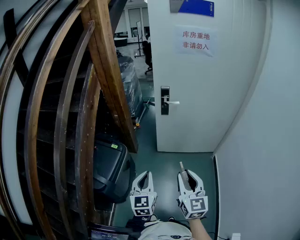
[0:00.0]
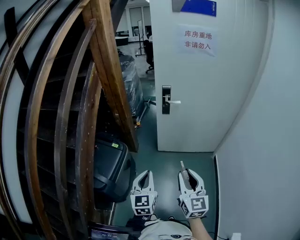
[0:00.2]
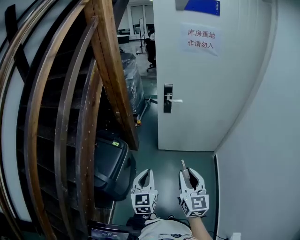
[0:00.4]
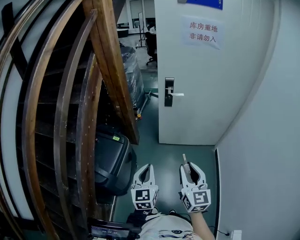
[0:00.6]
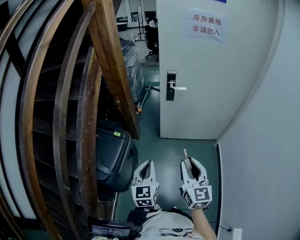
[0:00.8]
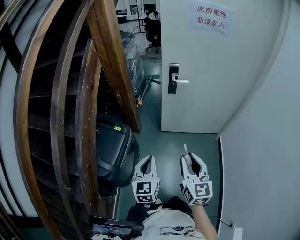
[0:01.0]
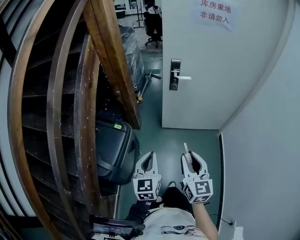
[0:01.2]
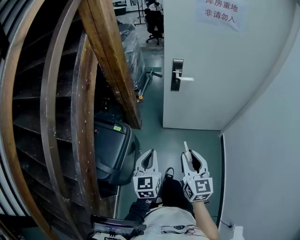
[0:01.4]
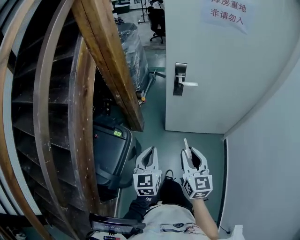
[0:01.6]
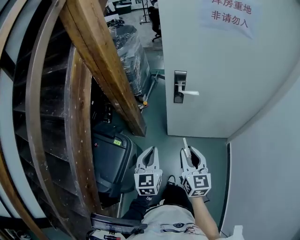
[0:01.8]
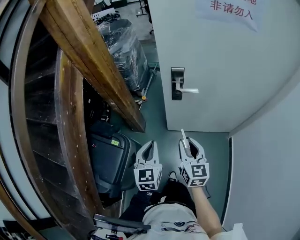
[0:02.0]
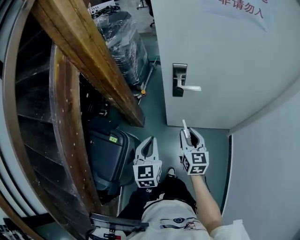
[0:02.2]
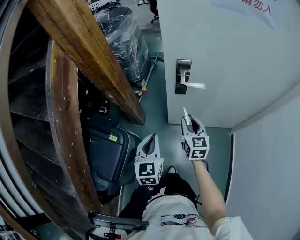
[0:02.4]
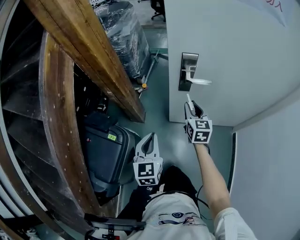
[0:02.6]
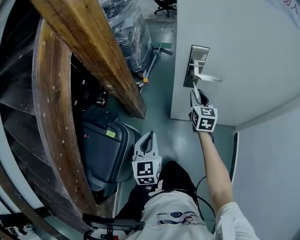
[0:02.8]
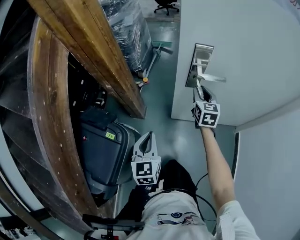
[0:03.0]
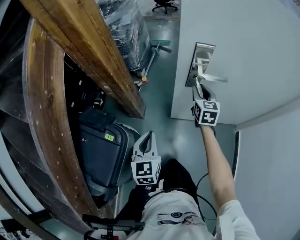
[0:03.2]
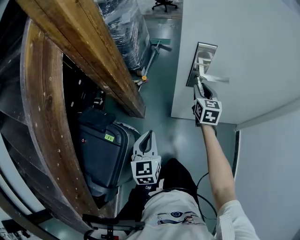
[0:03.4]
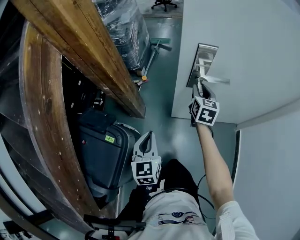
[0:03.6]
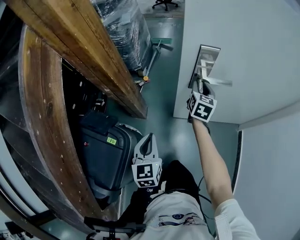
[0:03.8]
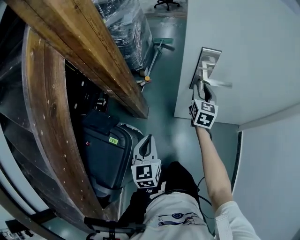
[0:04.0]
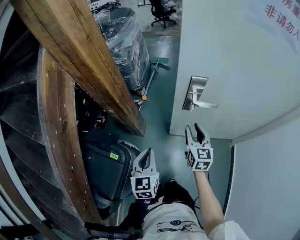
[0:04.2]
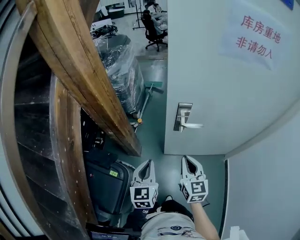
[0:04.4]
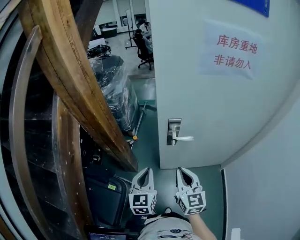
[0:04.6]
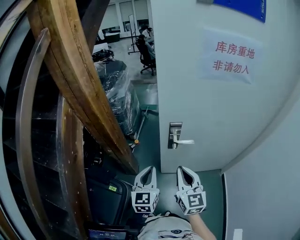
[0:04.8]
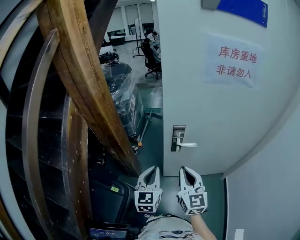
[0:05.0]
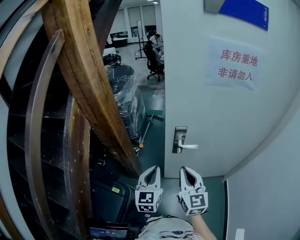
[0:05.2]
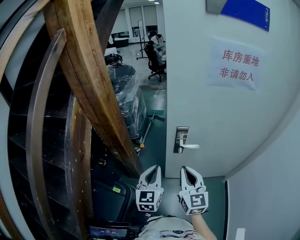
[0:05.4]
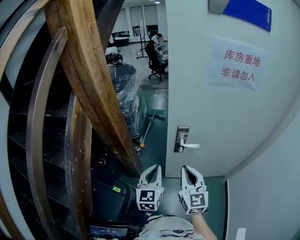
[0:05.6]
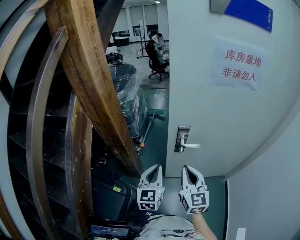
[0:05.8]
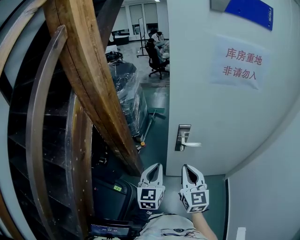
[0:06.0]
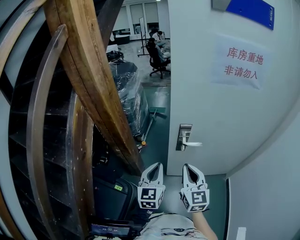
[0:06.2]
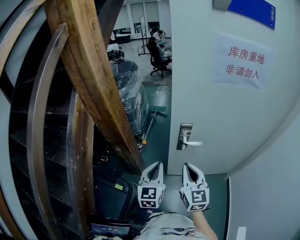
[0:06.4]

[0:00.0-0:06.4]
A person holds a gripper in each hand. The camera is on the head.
0:00.0 to 0:01.6: Both grippers move forward, approximately 20 cm.
0:01.6 to 0:03.2: The left gripper is displaced forward and downward by about 25 cm, while the right gripper moves forward and downward, about 50 cm.
0:03.2 to 0:04.8: The right gripper heads upward and backward, covering approximately 30 cm, and closes. The left gripper travels upward by about 20 cm.
0:04.8 to 0:06.4: The grippers make only small movements.

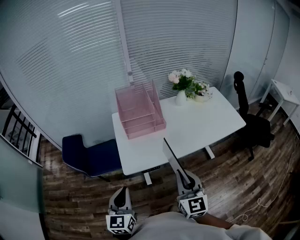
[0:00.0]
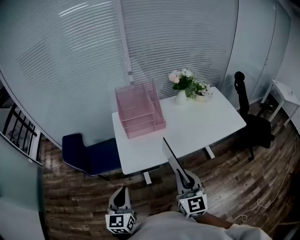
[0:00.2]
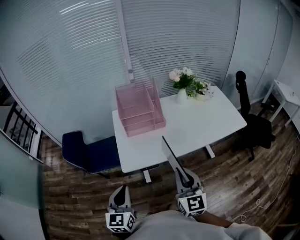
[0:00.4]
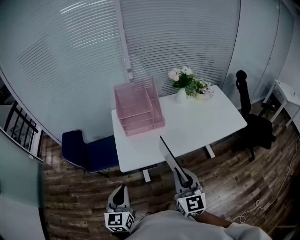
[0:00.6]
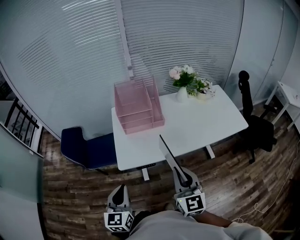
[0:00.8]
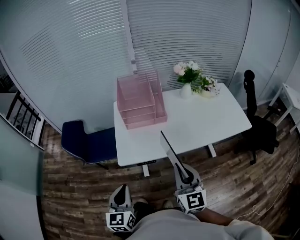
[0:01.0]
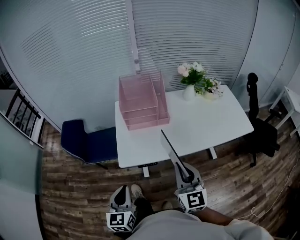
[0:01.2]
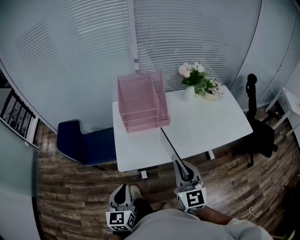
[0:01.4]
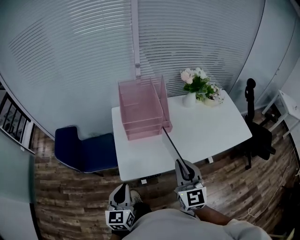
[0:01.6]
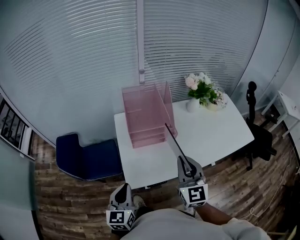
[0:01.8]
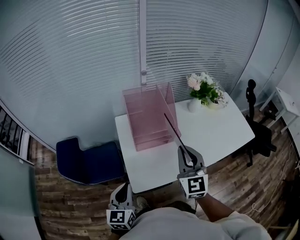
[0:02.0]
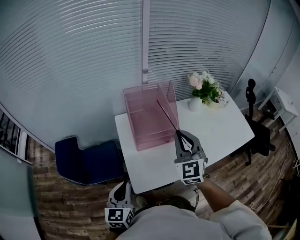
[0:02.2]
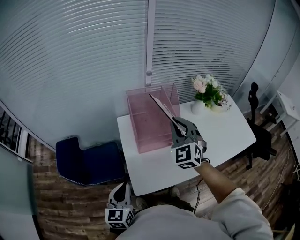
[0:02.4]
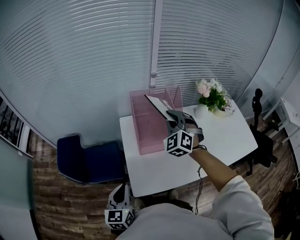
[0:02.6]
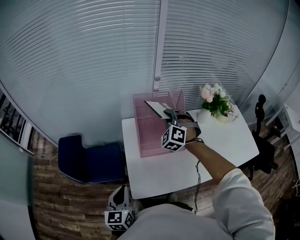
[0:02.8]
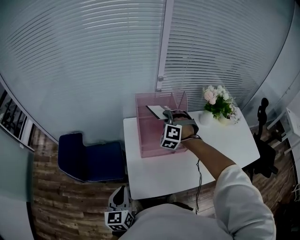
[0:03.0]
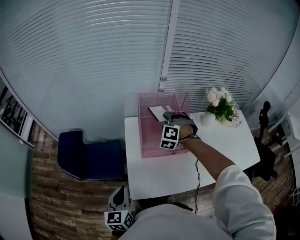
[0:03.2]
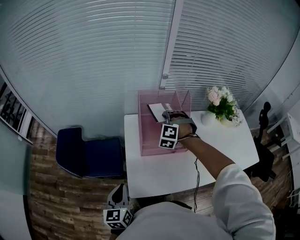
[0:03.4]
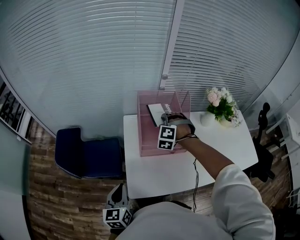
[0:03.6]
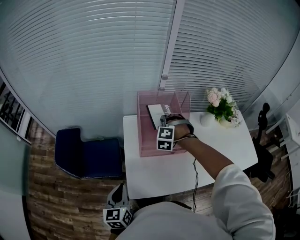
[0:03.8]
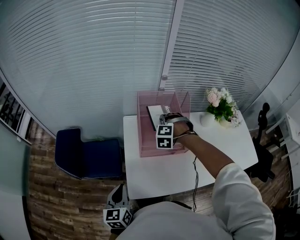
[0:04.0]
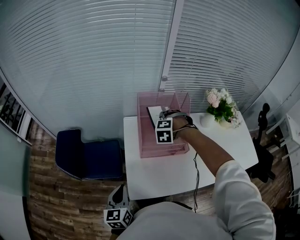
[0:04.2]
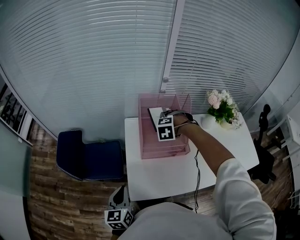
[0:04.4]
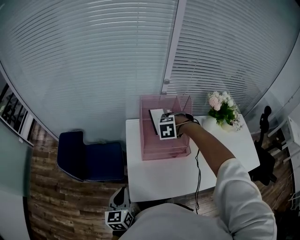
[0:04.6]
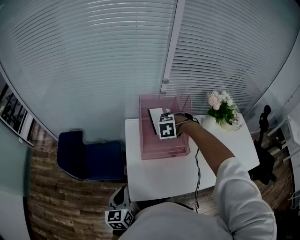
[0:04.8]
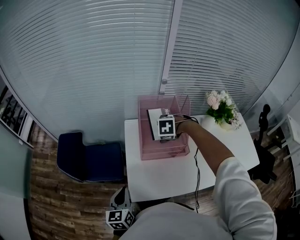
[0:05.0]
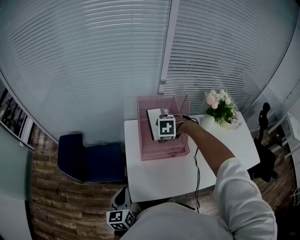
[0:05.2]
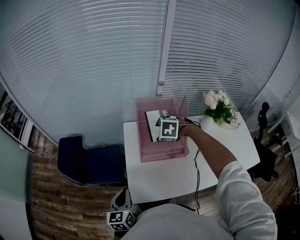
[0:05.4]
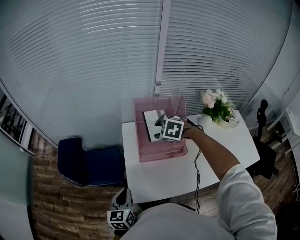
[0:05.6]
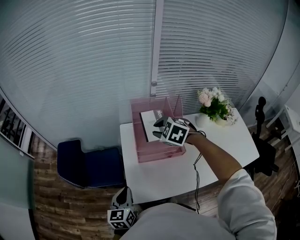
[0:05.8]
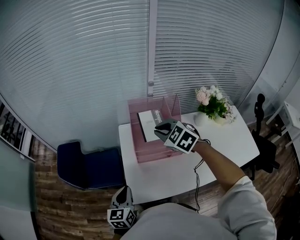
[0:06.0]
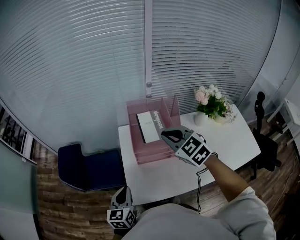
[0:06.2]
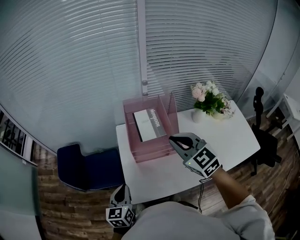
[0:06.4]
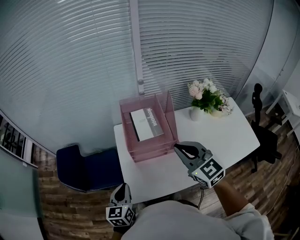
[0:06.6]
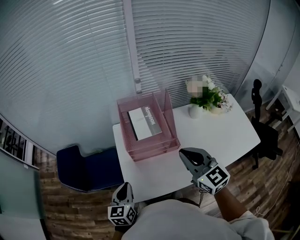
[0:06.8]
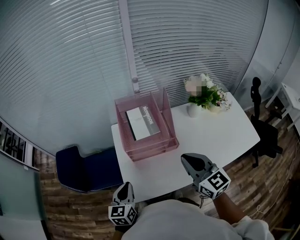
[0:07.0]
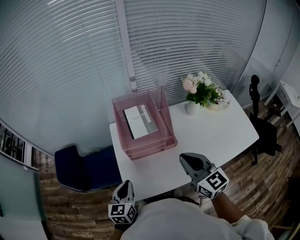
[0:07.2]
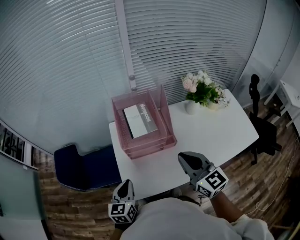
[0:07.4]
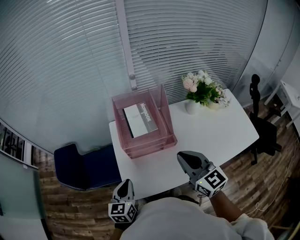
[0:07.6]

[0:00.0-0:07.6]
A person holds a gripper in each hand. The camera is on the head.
0:00.0 to 0:01.6: The right gripper shifts about 15 cm forward; the left gripper heads forward and downward, covering about 15 cm.
0:01.6 to 0:03.0: The left gripper travels forward and to the left by approximately 15 cm, while the right gripper goes roughly 40 cm forward, and rotates around the line of its fingers by about 70 degrees, counterclockwise from behind.
0:03.0 to 0:04.6: The right gripper shifts some 10 cm downward, tilts its fingers about 50 degrees downward, and opens up.
0:04.6 to 0:06.0: The right gripper shifts some 15 cm upward, tilts its fingers some 40 degrees upward, and closes its fingers.
0:06.0 to 0:07.6: The left gripper moves to the right, roughly 5 cm, while the right gripper moves backward and to the right, some 20 cm, and angles its fingers upward, by about 40 degrees.

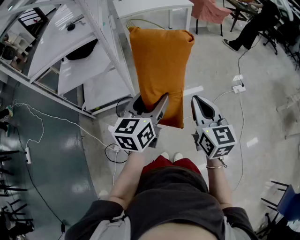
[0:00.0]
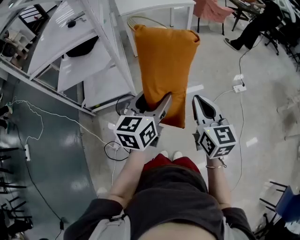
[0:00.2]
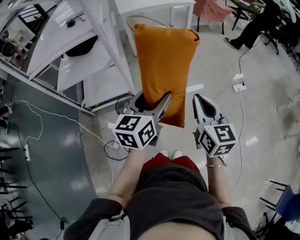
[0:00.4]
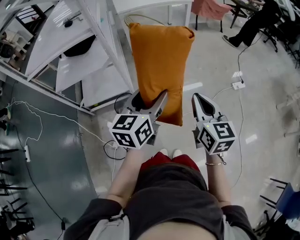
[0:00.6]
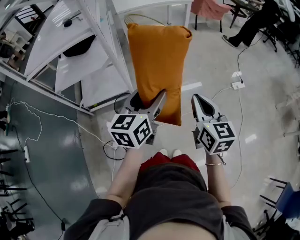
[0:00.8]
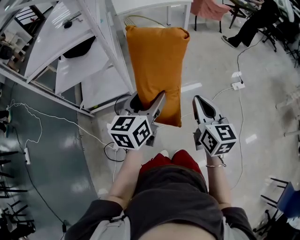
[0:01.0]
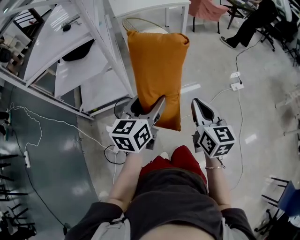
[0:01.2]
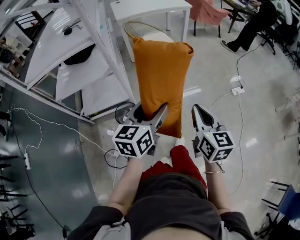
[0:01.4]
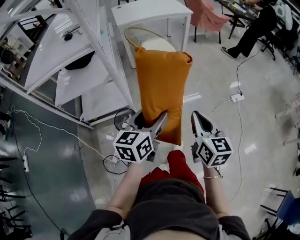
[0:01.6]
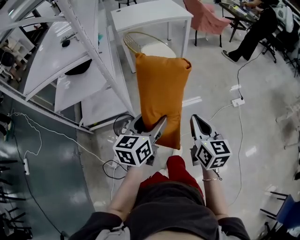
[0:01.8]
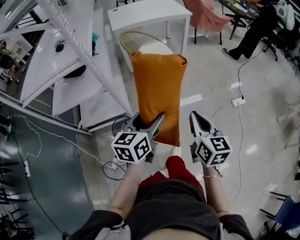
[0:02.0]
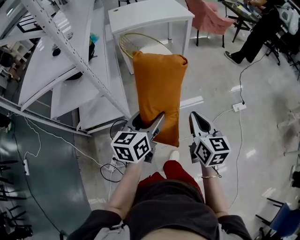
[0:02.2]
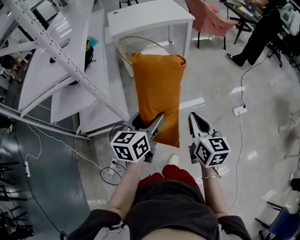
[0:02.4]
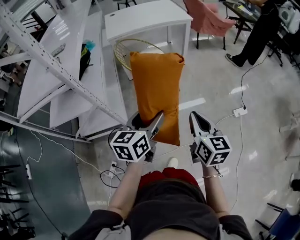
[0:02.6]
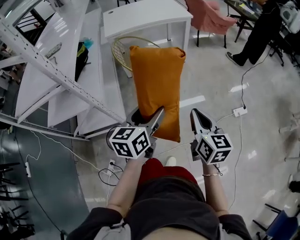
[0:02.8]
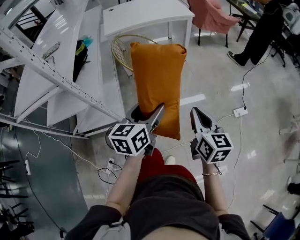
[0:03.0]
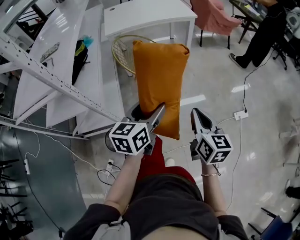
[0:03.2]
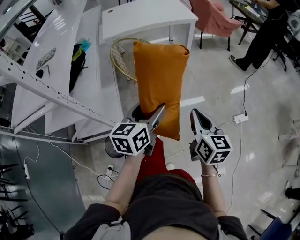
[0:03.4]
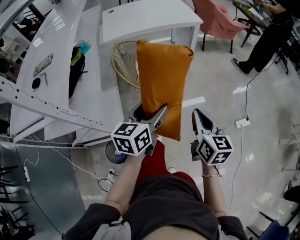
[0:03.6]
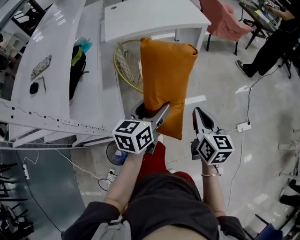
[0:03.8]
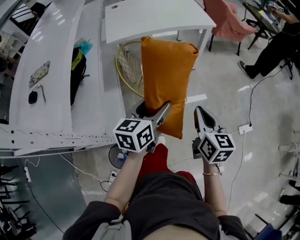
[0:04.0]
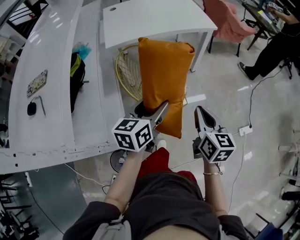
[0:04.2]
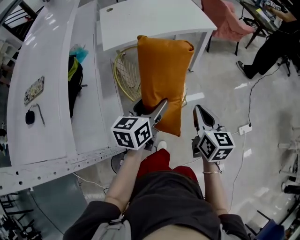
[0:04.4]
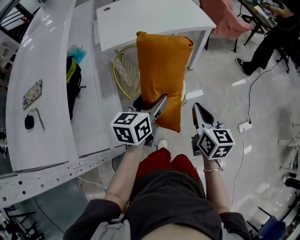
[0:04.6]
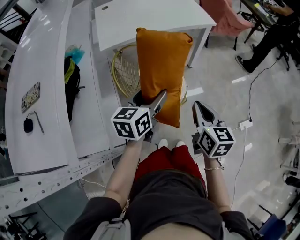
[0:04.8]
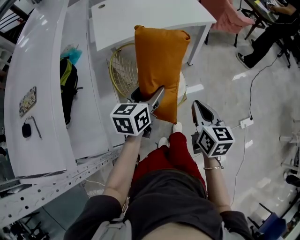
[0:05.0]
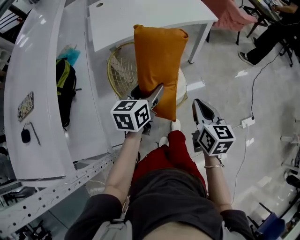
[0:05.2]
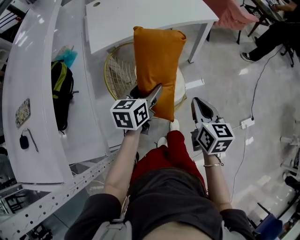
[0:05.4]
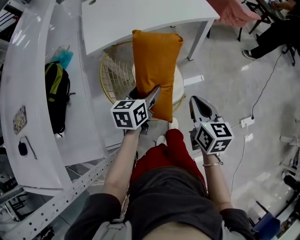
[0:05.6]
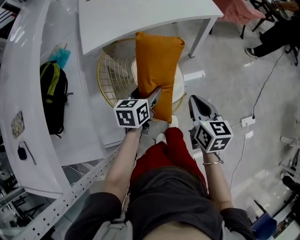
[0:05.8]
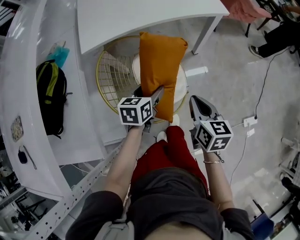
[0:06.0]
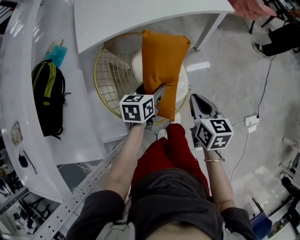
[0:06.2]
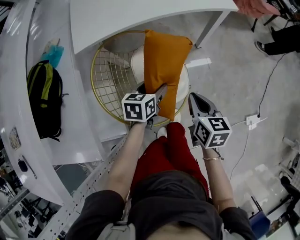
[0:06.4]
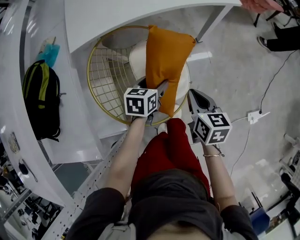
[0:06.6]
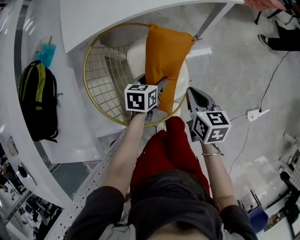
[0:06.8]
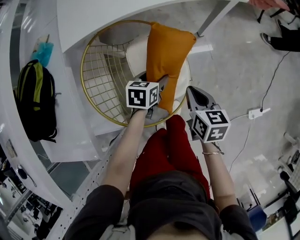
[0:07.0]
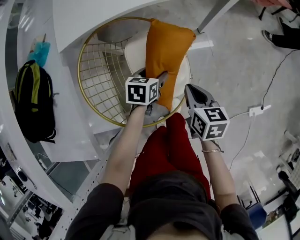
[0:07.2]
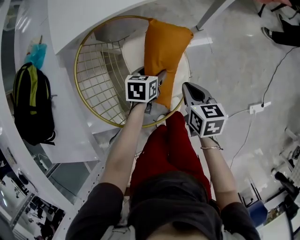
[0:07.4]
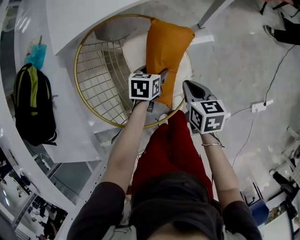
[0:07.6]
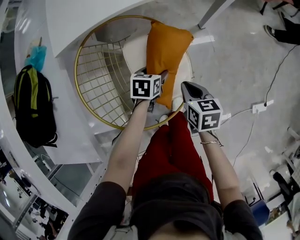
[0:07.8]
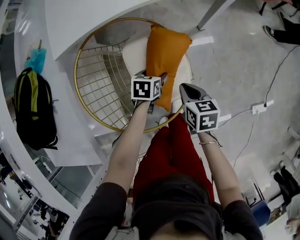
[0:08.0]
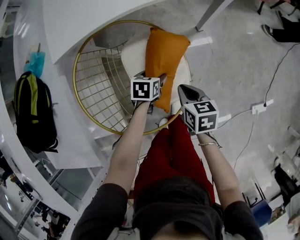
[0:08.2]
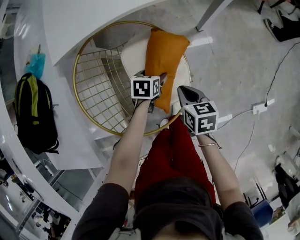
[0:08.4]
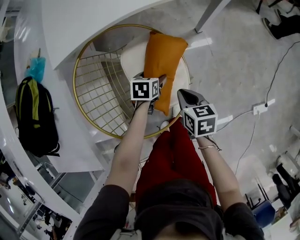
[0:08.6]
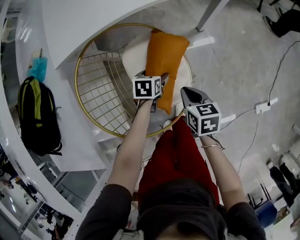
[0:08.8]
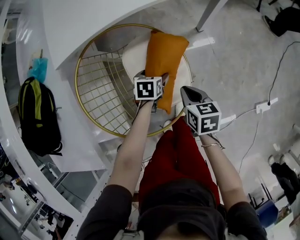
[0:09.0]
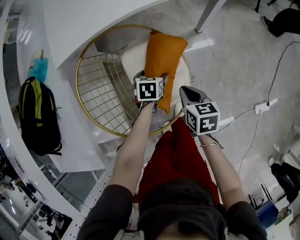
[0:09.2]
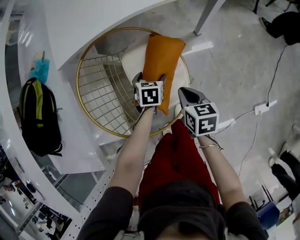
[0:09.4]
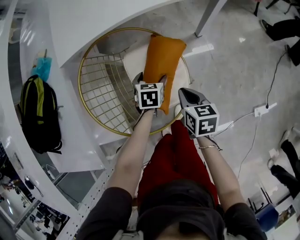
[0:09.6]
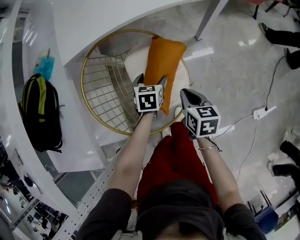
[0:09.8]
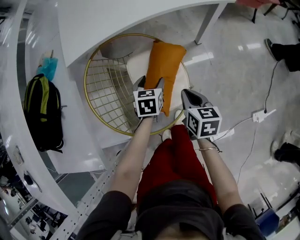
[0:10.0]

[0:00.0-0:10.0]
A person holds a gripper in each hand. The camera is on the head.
0:00.0 to 0:01.4: The grippers move only a little.
0:01.4 to 0:02.8: The grippers both shift forward by roughly 25 cm.
0:02.8 to 0:04.2: Both grippers move forward, approximately 35 cm.
0:04.2 to 0:05.8: The two grippers go some 20 cm forward and downward.
0:05.8 to 0:07.2: Both grippers travel together downward and forward, about 20 cm.
0:07.2 to 0:08.6: The grippers both shift downward by about 5 cm.
0:08.6 to 0:10.0: The right gripper travels upward by approximately 5 cm. Meanwhile the left gripper heads upward, covering approximately 10 cm.
